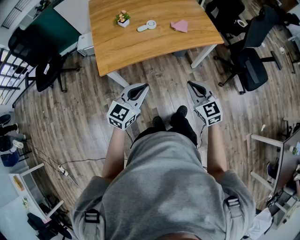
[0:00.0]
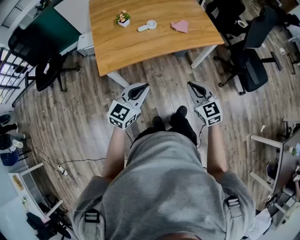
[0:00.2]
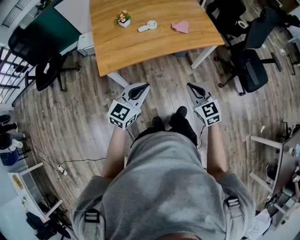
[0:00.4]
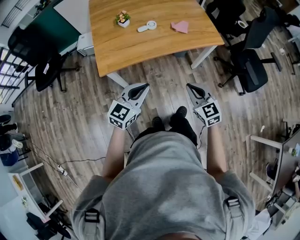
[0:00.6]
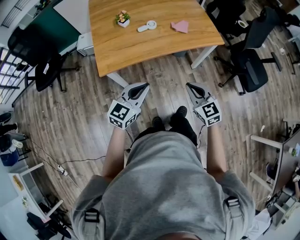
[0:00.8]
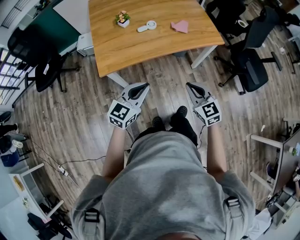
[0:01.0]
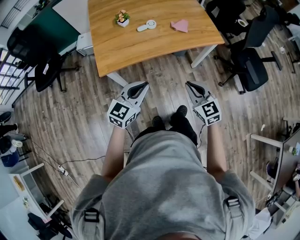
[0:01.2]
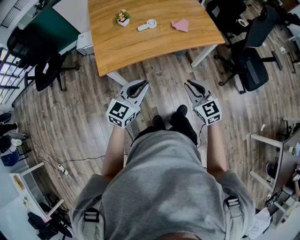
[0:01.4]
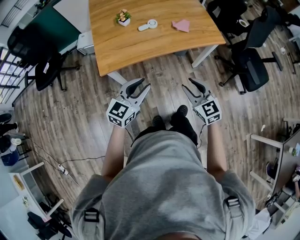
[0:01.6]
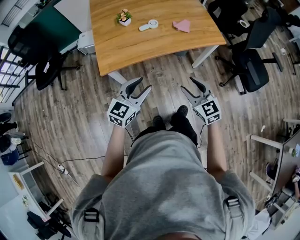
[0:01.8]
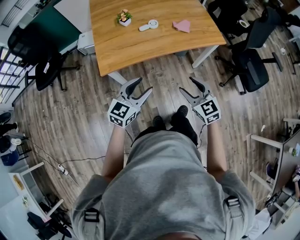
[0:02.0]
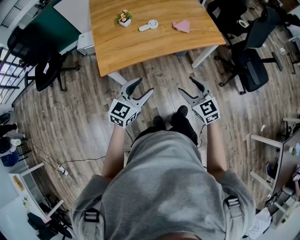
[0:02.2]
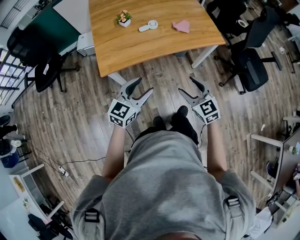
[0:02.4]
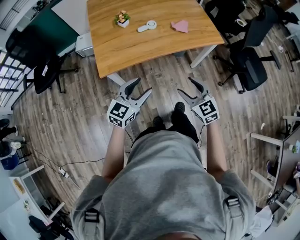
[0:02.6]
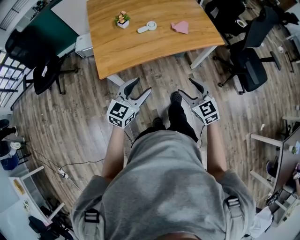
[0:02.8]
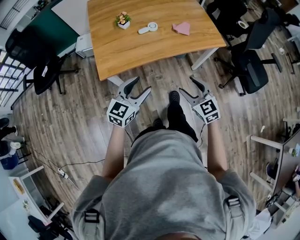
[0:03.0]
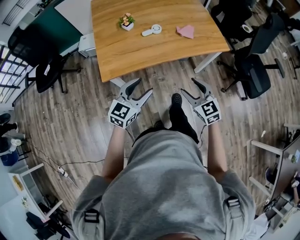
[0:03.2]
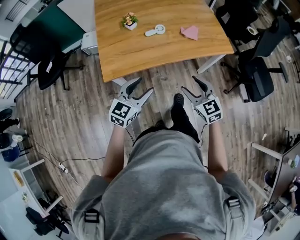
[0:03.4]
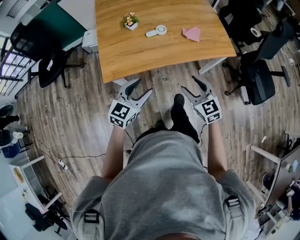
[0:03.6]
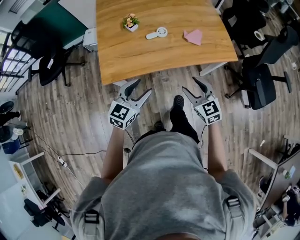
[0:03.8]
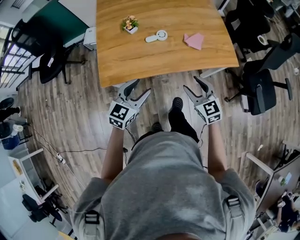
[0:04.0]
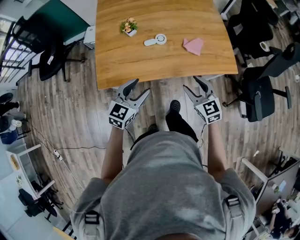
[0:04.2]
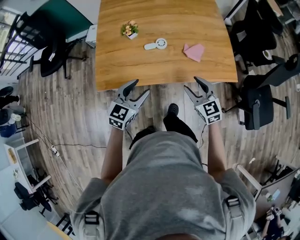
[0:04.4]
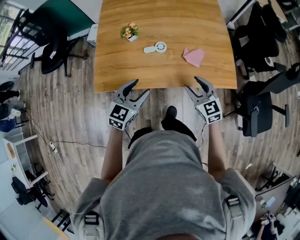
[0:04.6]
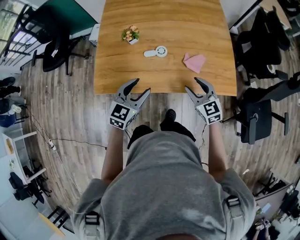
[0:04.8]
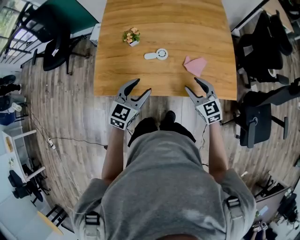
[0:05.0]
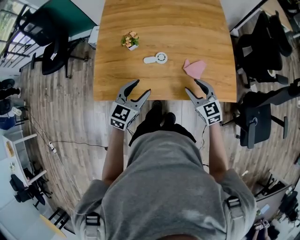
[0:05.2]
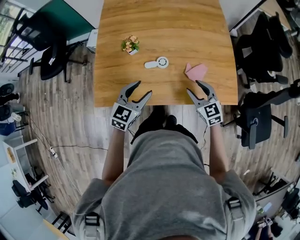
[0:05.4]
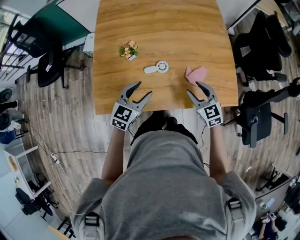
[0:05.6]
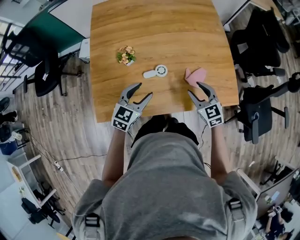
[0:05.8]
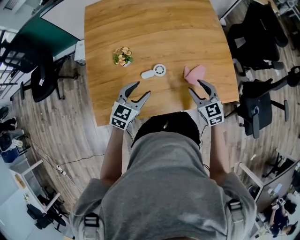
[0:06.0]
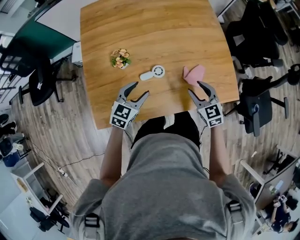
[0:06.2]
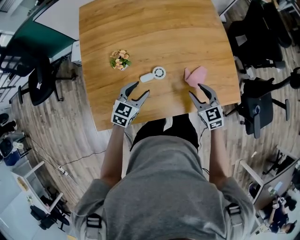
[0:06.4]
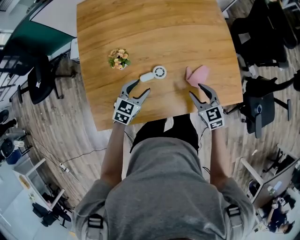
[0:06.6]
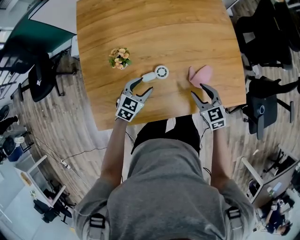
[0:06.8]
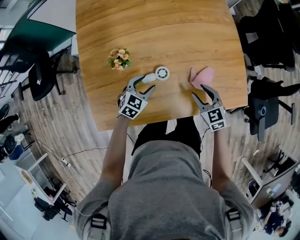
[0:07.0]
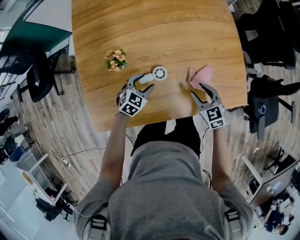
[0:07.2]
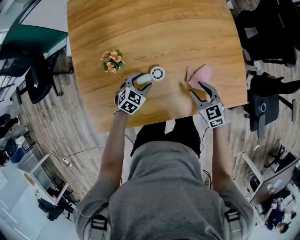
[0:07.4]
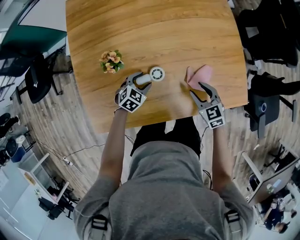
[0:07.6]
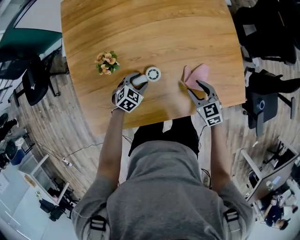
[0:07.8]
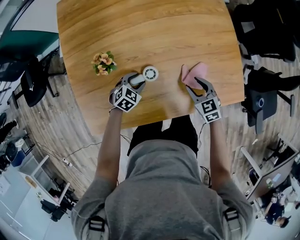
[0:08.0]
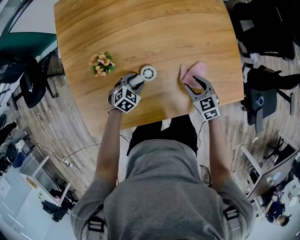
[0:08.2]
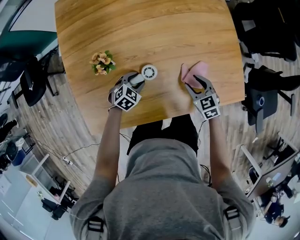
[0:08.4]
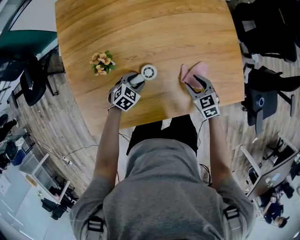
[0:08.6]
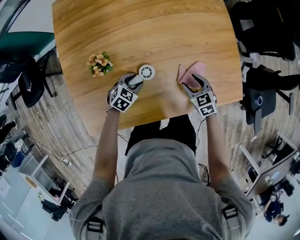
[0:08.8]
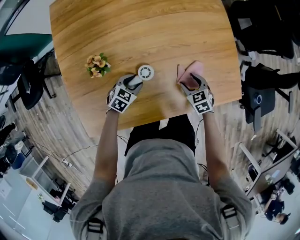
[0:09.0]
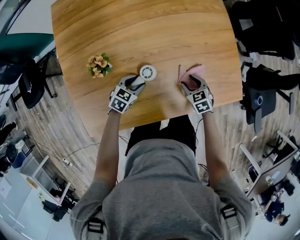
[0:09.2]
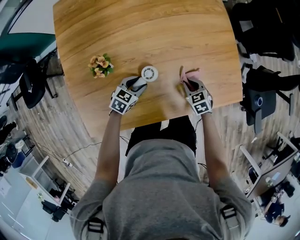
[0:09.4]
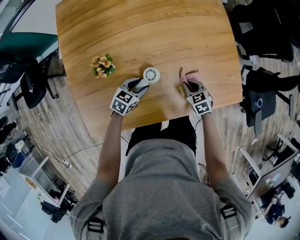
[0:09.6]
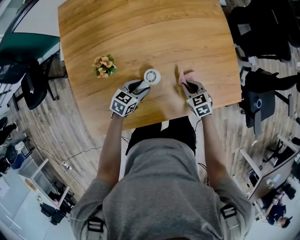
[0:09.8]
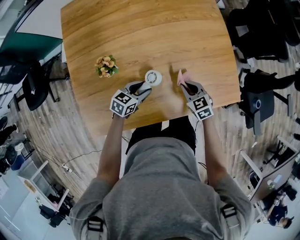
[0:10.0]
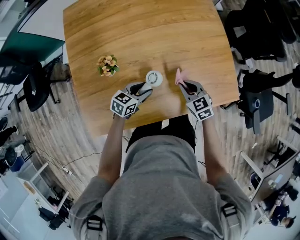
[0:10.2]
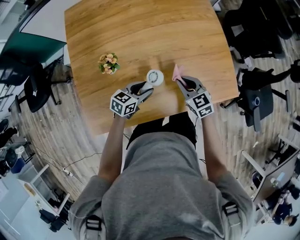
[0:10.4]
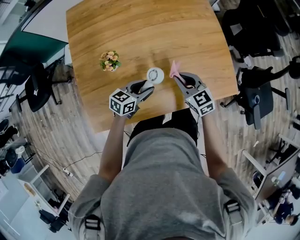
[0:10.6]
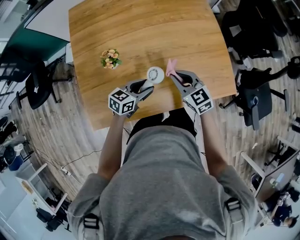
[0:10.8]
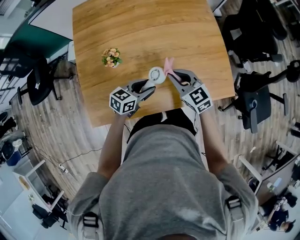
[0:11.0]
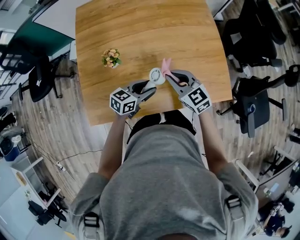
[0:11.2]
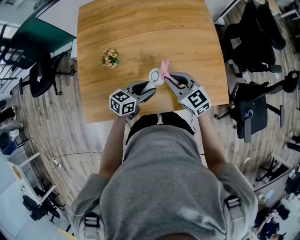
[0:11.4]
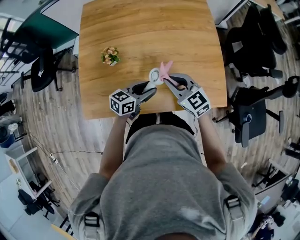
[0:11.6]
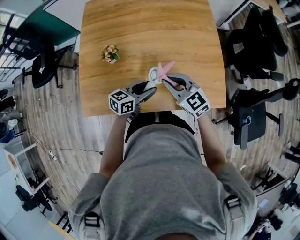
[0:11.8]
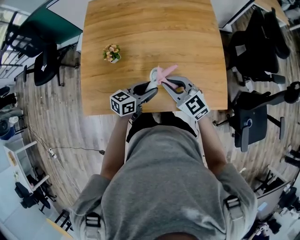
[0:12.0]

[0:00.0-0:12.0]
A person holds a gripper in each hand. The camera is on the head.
0:00.0 to 0:01.6: The right gripper opens its fingers, while the left gripper opens.
0:01.6 to 0:03.0: The right gripper opens up, while the left gripper opens up.
0:03.0 to 0:04.4: Both grippers move forward, about 20 cm.
0:04.4 to 0:06.0: The two grippers go about 20 cm forward.
0:06.0 to 0:07.6: The right gripper moves downward, roughly 10 cm. Meanwhile the left gripper is displaced downward and forward by about 25 cm, and changes its angle by about 30 degrees.
0:07.6 to 0:09.0: The right gripper shifts roughly 10 cm downward.
0:09.0 to 0:10.4: The left gripper is displaced upward by approximately 10 cm, and rotates approximately 30 degrees; the right gripper is displaced upward and to the left by about 15 cm, swivels some 20 degrees, and closes its fingers.
0:10.4 to 0:12.0: The left gripper heads upward and to the right, covering some 15 cm, and changes its angle by some 20 degrees. Meanwhile the right gripper moves upward, about 15 cm, and changes its angle by some 30 degrees.

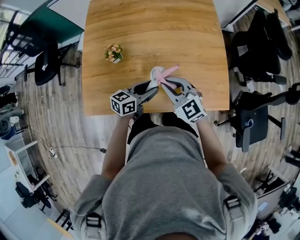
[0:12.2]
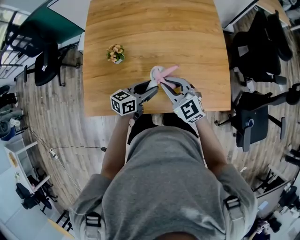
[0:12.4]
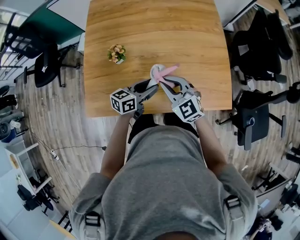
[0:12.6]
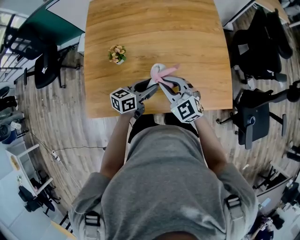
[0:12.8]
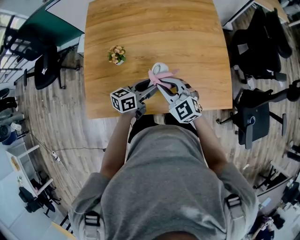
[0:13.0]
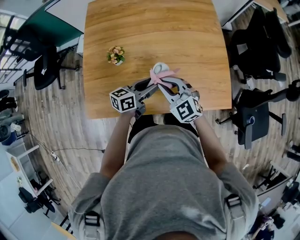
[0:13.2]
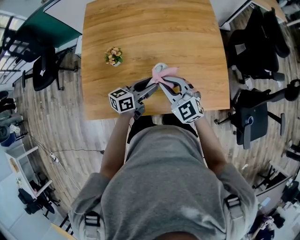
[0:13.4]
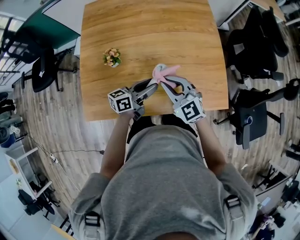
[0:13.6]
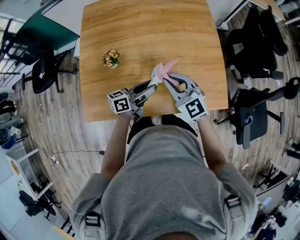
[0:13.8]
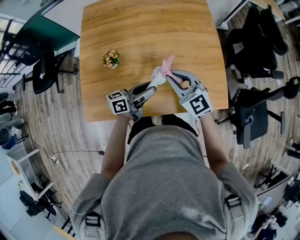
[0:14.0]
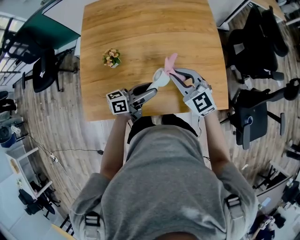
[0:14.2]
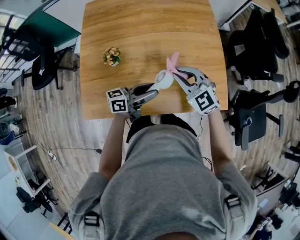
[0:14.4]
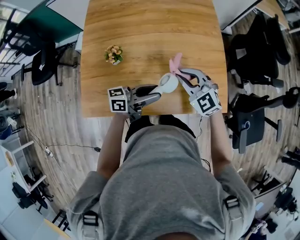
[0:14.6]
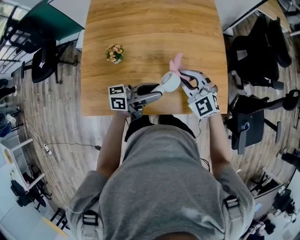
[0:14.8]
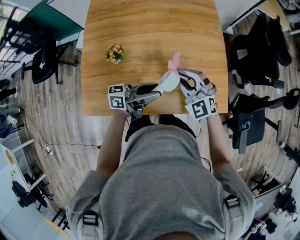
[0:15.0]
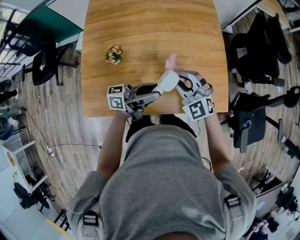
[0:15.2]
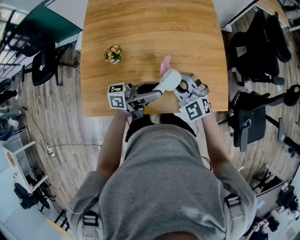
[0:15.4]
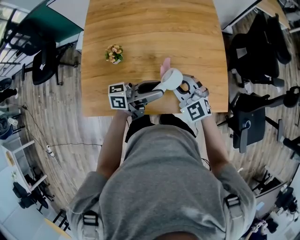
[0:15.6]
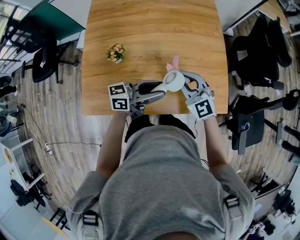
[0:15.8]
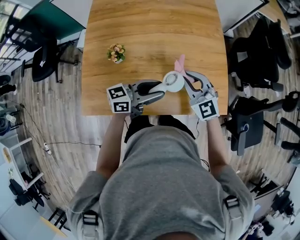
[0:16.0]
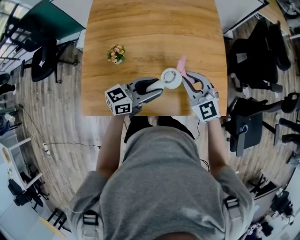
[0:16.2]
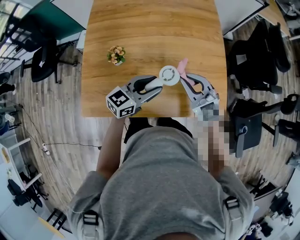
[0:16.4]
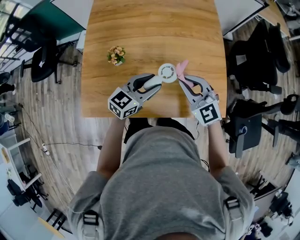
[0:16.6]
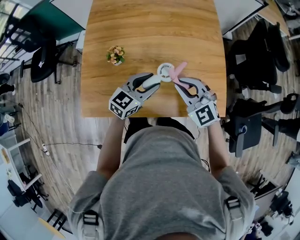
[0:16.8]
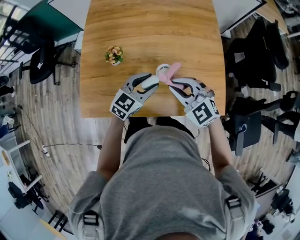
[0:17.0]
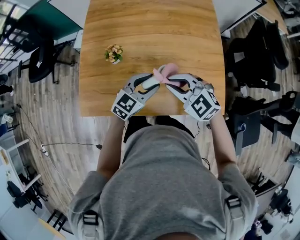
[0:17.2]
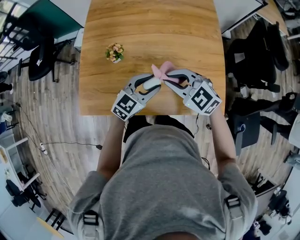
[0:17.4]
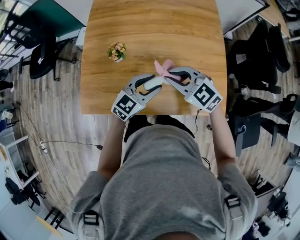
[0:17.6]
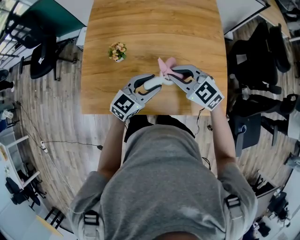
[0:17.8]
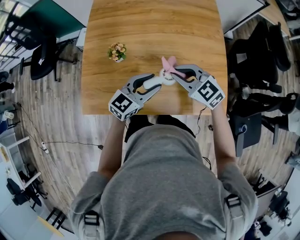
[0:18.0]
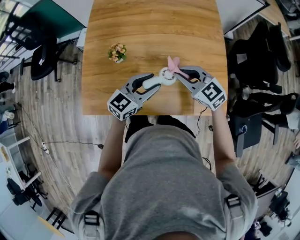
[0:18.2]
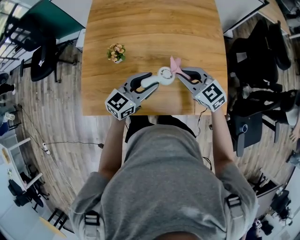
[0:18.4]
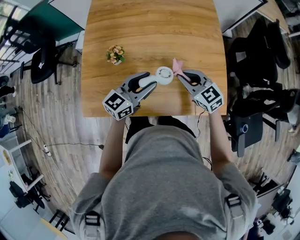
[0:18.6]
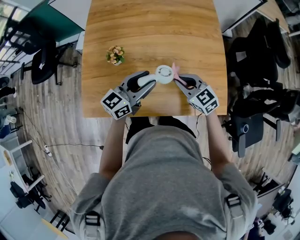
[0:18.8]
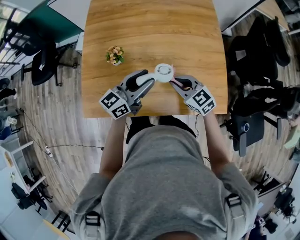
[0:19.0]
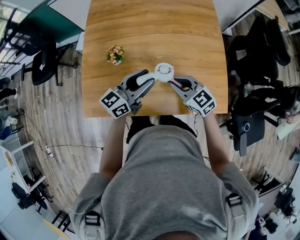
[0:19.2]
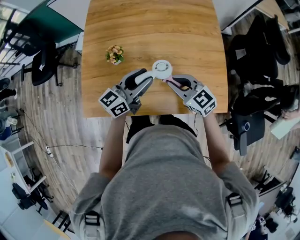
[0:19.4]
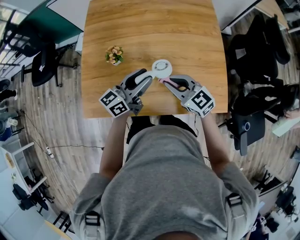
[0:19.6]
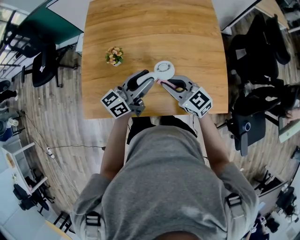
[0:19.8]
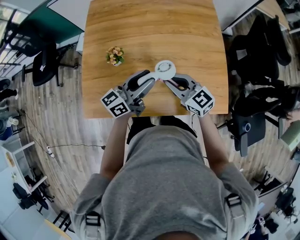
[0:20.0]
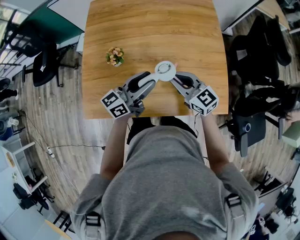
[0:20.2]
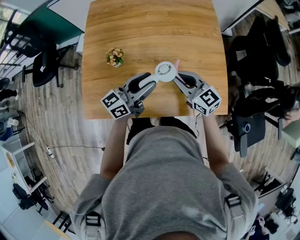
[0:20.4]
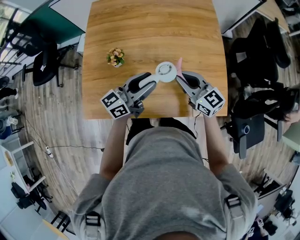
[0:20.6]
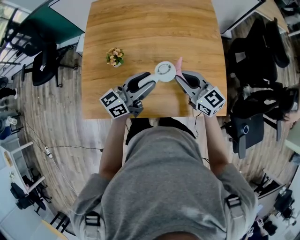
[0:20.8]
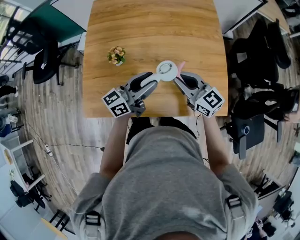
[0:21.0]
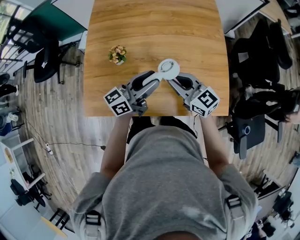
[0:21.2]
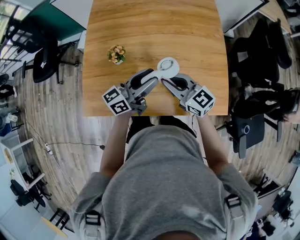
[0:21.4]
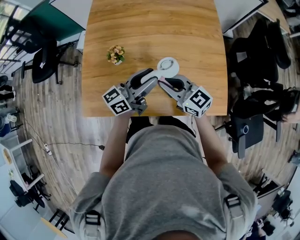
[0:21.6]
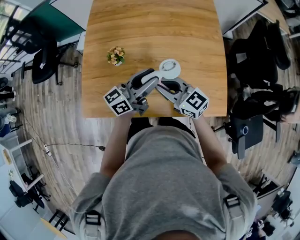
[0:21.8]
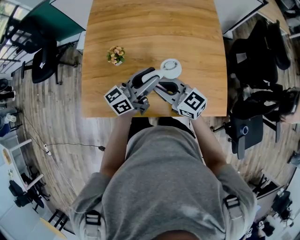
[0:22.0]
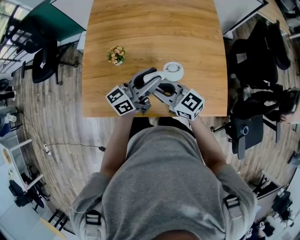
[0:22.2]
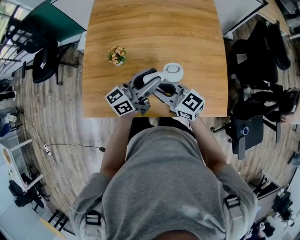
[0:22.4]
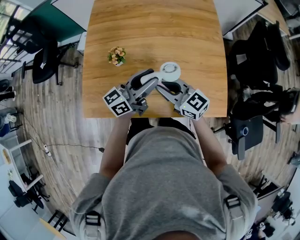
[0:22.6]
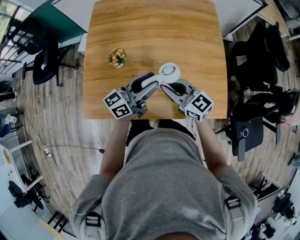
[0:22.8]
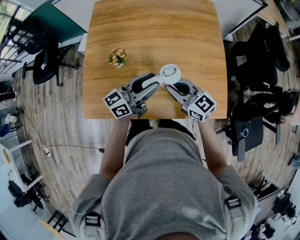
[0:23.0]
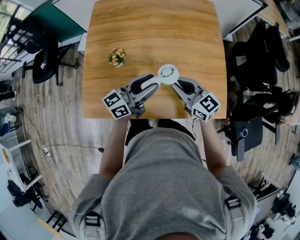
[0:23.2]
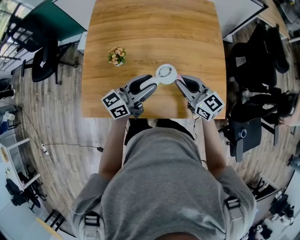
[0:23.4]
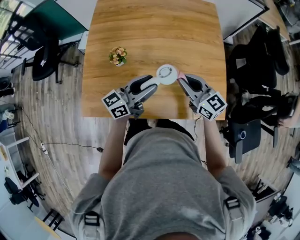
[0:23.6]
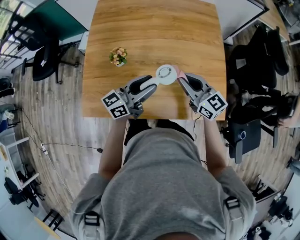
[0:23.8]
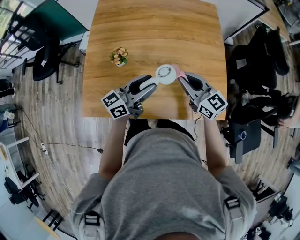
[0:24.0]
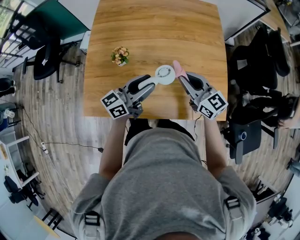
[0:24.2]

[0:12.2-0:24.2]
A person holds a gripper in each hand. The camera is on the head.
0:12.2 to 0:13.8: The left gripper rotates about 20 degrees.
0:13.8 to 0:15.2: The left gripper is displaced upward by some 10 cm, and changes its angle by about 20 degrees; the right gripper rotates about 30 degrees.
0:15.2 to 0:16.6: The left gripper ends up some 5 cm from where it was, and tips its fingers downward by some 30 degrees.
0:18.2 to 0:19.8: The left gripper changes its angle by about 30 degrees.
0:22.6 to 0:24.2: The right gripper shifts roughly 10 cm to the right.
